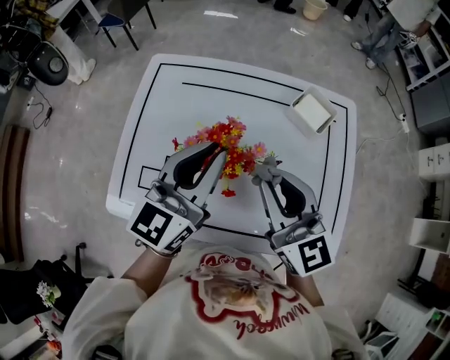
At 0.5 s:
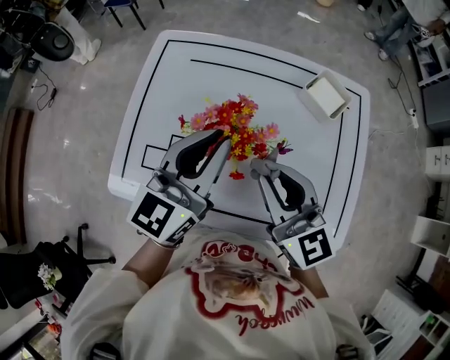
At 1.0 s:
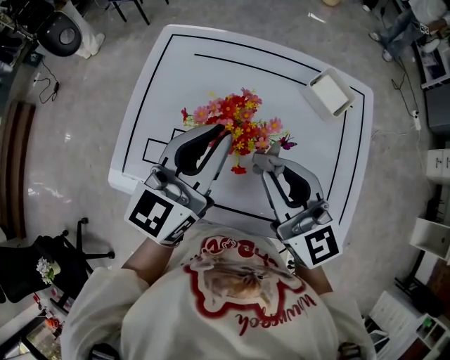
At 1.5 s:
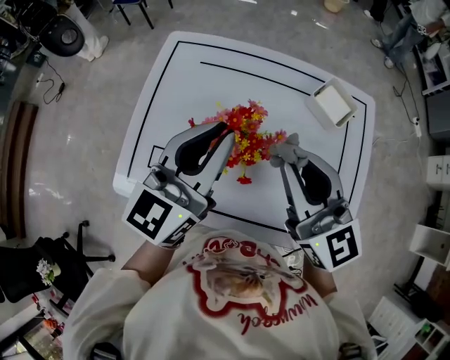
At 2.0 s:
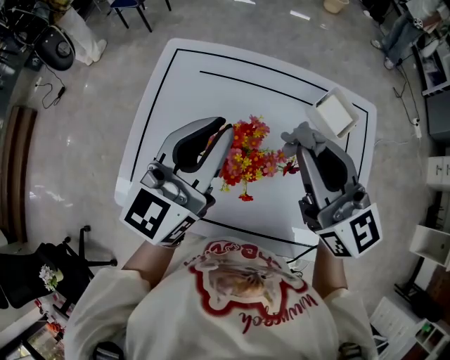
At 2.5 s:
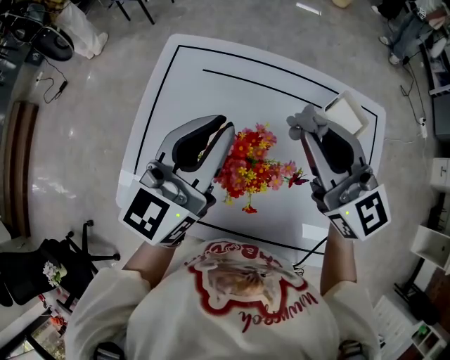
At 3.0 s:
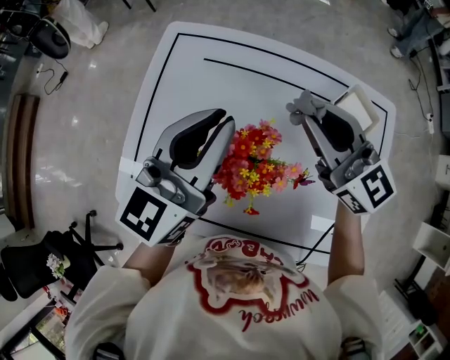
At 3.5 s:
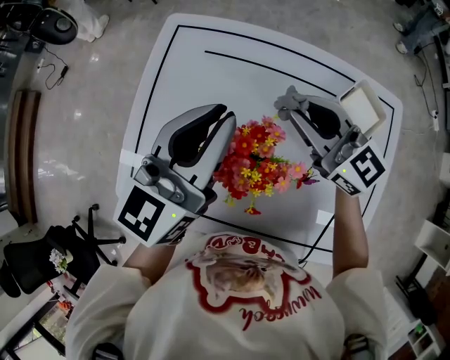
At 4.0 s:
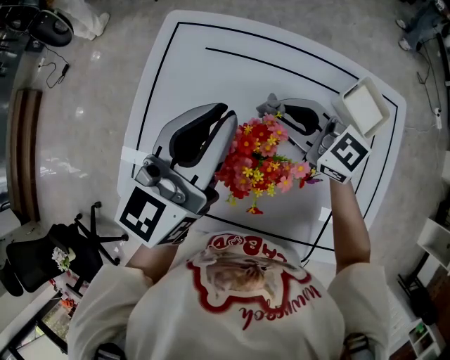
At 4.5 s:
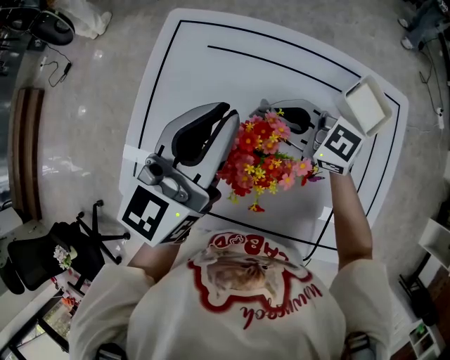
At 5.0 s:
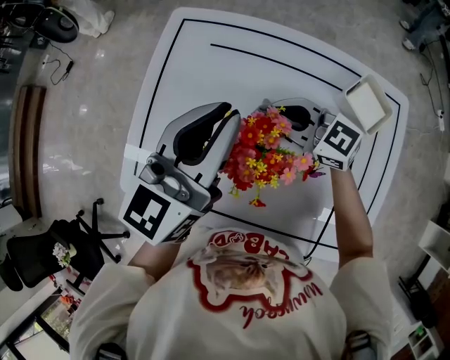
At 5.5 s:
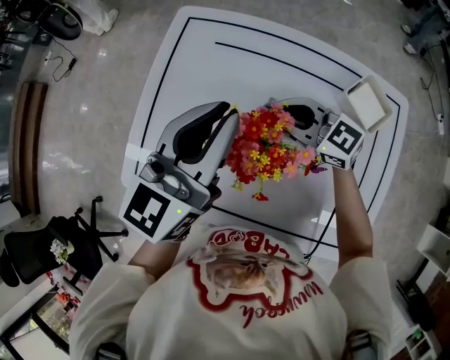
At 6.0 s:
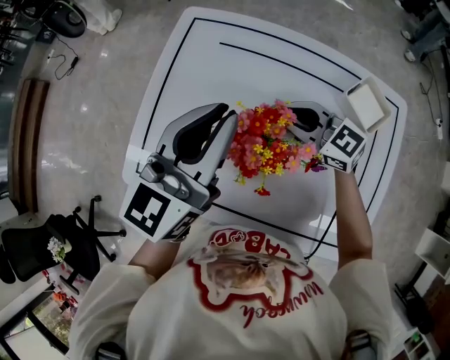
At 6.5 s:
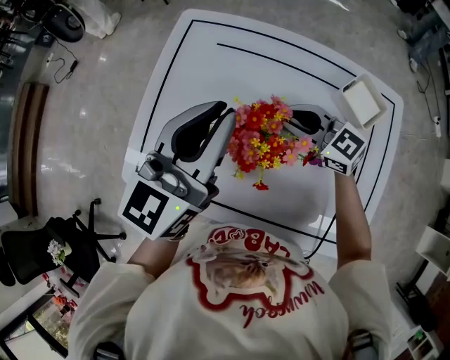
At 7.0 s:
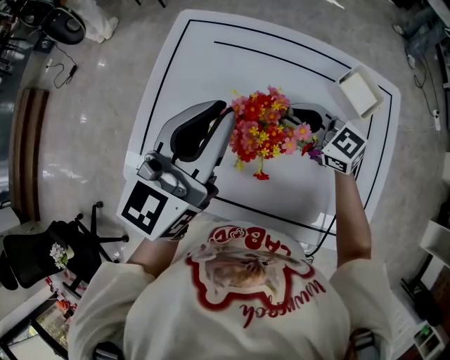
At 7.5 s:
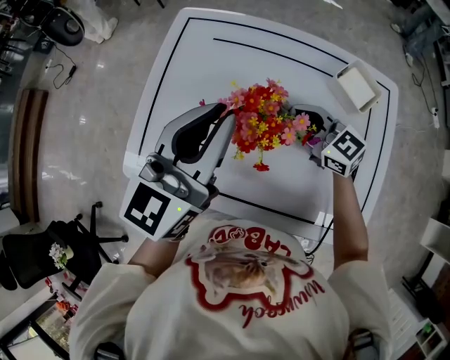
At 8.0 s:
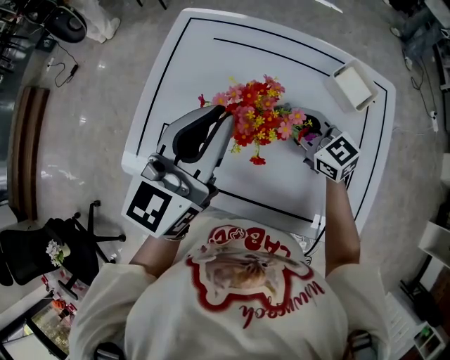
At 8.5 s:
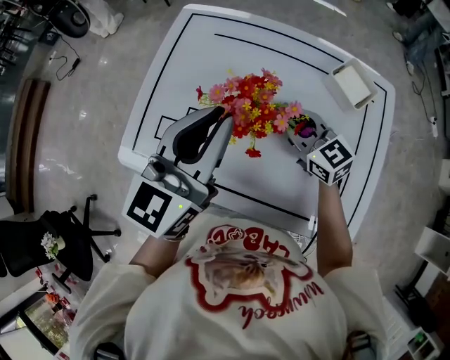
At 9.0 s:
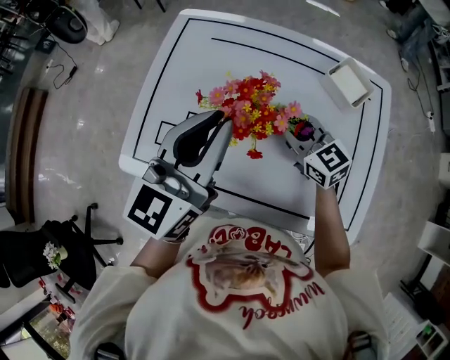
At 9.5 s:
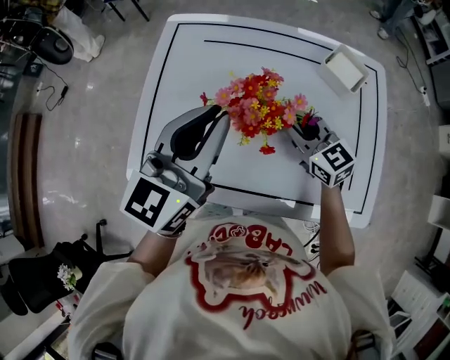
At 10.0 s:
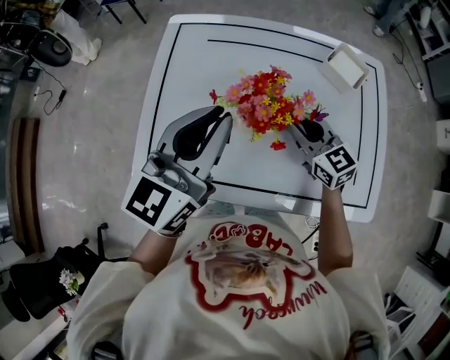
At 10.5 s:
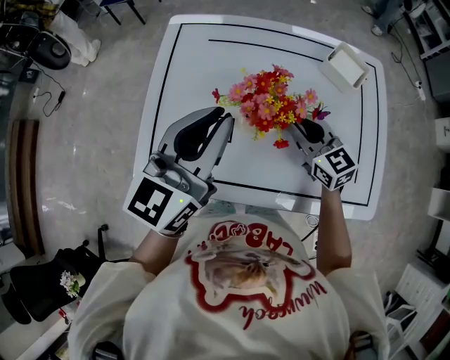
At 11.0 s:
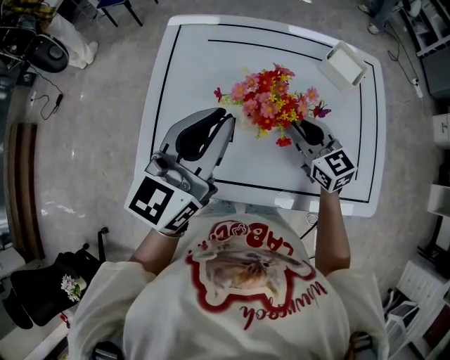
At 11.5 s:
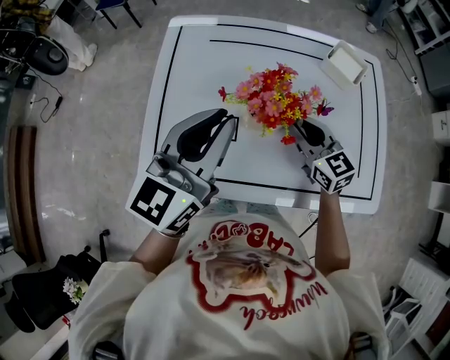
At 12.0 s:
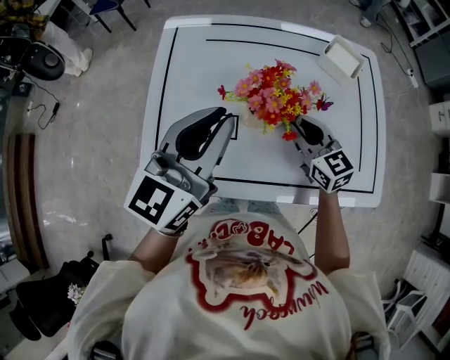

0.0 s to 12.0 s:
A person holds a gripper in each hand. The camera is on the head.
0.0 to 2.0 s: The left gripper shifts by approximately 5 cm; the right gripper goes some 5 cm forward.
2.0 to 4.0 s: The right gripper is displaced downward and forward by some 20 cm, and changes its angle by roughly 30 degrees, while the left gripper changes place by about 5 cm.
4.0 to 6.0 s: The grippers make only small movements.
6.0 to 8.0 s: The two grippers go about 5 cm backward.
8.0 to 10.0 s: The grippers stay close to where they were, moving slightly.
10.0 to 12.0 s: The grippers stay close to where they were, moving slightly.

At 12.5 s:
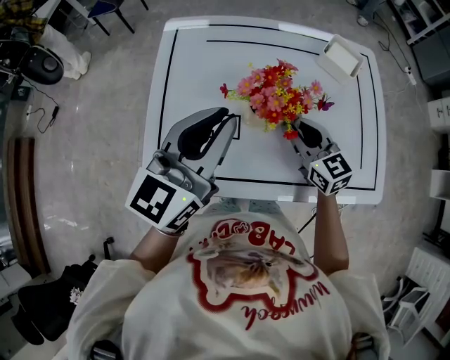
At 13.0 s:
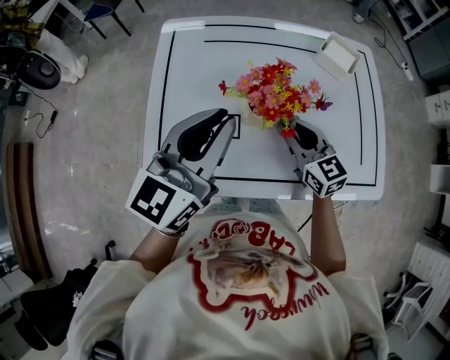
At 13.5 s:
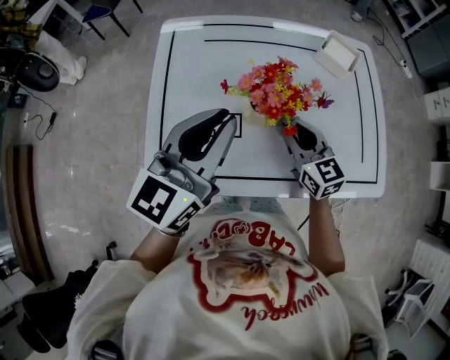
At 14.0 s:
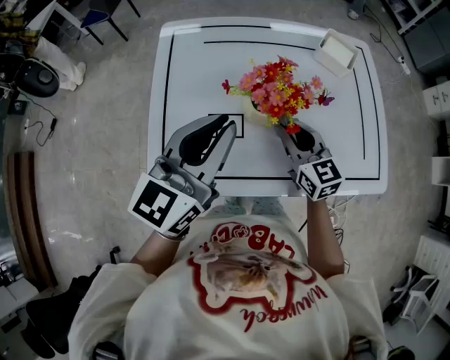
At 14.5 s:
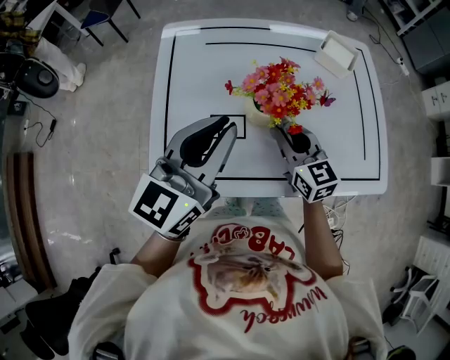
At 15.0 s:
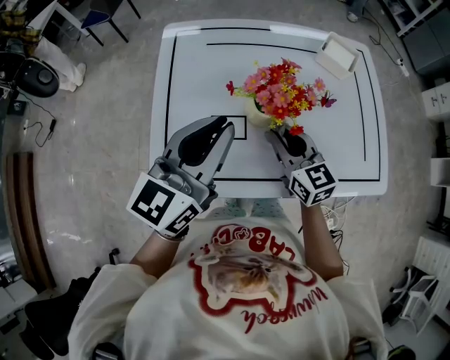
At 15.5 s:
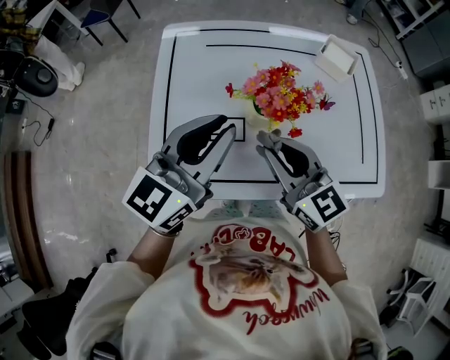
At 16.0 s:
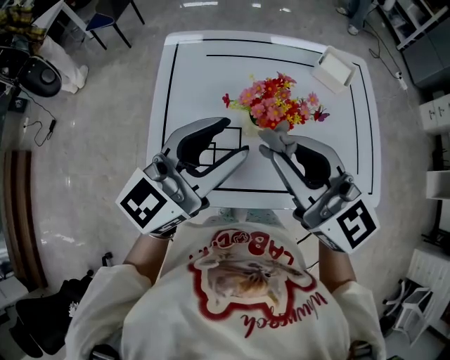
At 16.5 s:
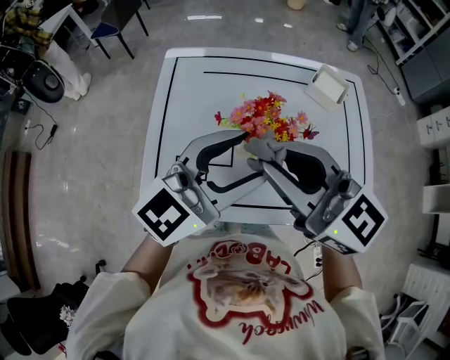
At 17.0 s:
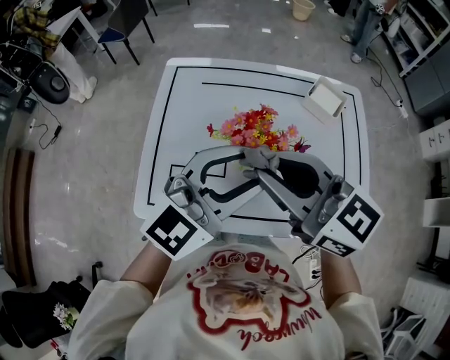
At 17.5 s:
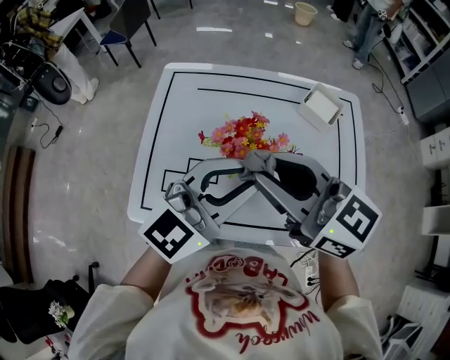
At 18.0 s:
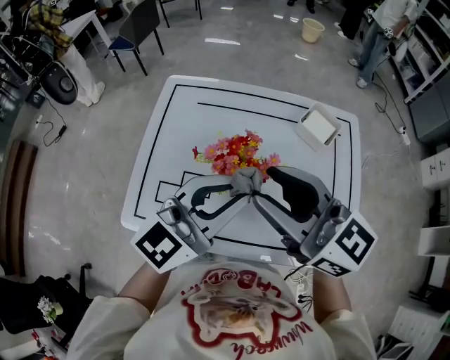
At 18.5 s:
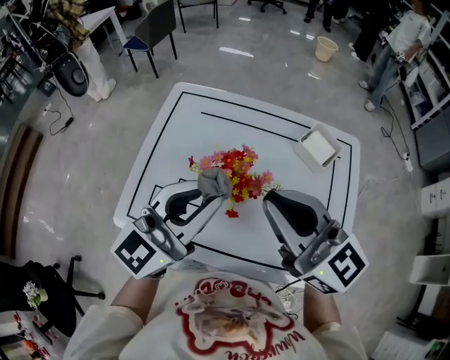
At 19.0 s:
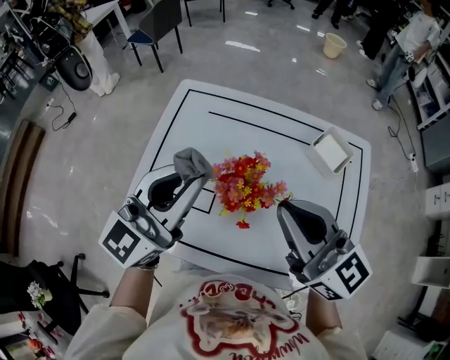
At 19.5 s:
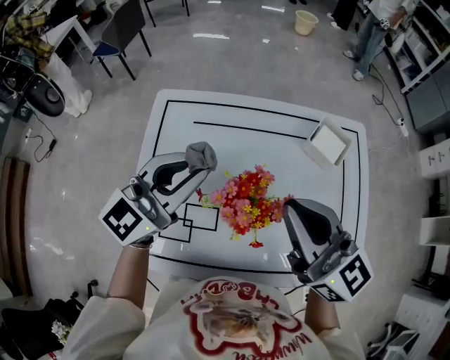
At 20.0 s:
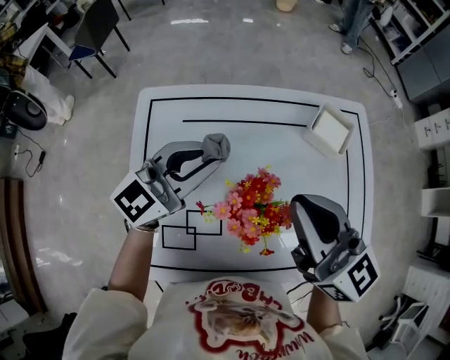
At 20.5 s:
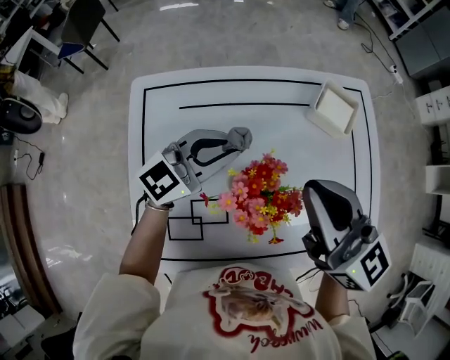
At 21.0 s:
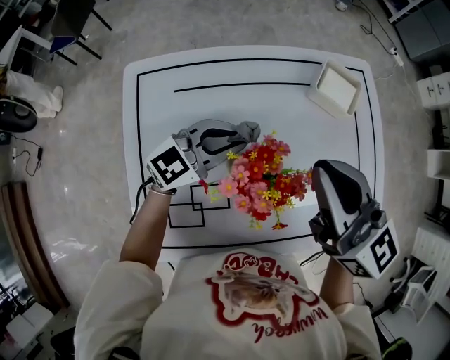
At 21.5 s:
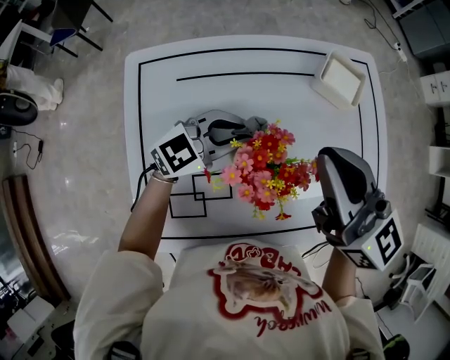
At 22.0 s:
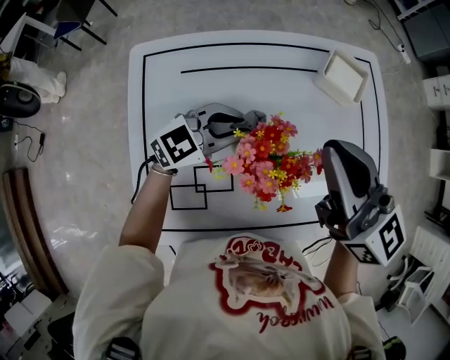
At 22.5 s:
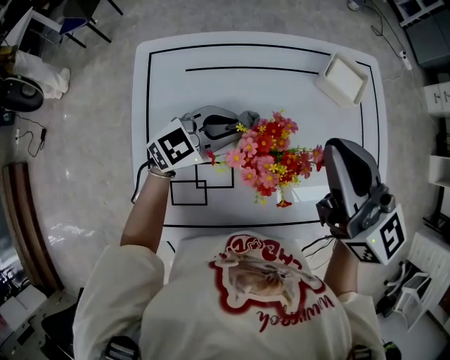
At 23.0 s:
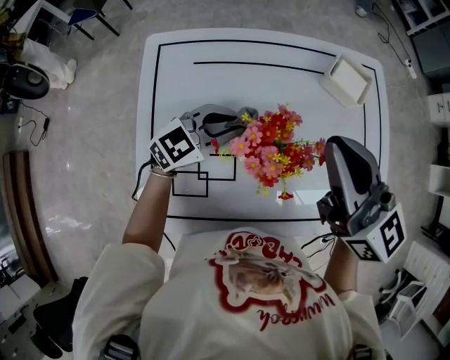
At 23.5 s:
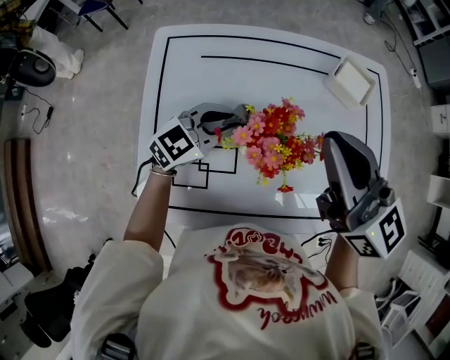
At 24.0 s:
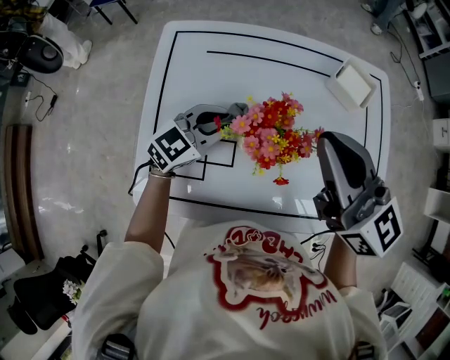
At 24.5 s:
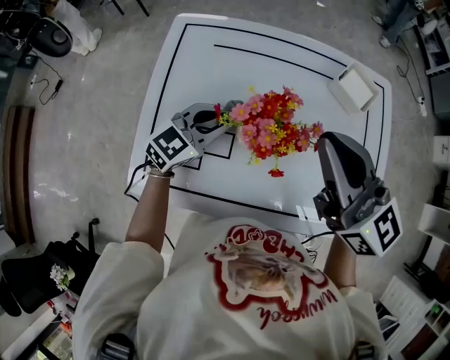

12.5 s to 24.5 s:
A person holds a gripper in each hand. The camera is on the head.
12.5 to 14.5 s: The grippers stay close to where they were, moving slightly.
14.5 to 16.5 s: The right gripper goes about 25 cm upward, and changes its angle by about 30 degrees, while the left gripper goes some 10 cm to the right, turns by roughly 20 degrees, and opens up.
16.5 to 18.5 s: The right gripper is displaced to the right by approximately 10 cm, and opens, then closes once more. The left gripper rotates about 20 degrees, and closes.
18.5 to 20.5 s: The right gripper ends up about 10 cm from where it was, and changes its angle by about 30 degrees. The left gripper moves some 25 cm, and rotates some 40 degrees.
20.5 to 22.5 s: The left gripper travels downward by roughly 5 cm.
22.5 to 24.5 s: The left gripper travels backward by approximately 5 cm, and rotates approximately 30 degrees.

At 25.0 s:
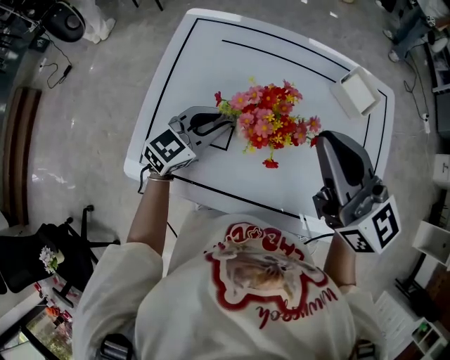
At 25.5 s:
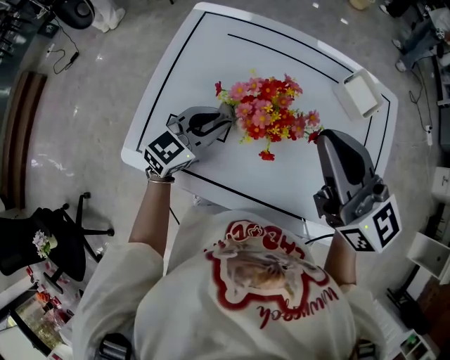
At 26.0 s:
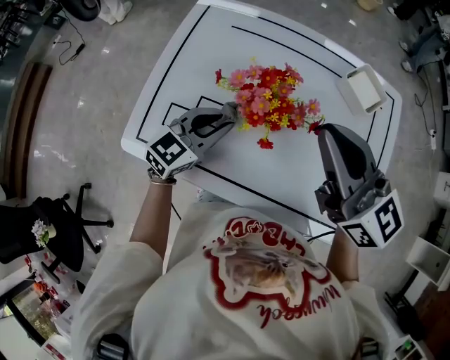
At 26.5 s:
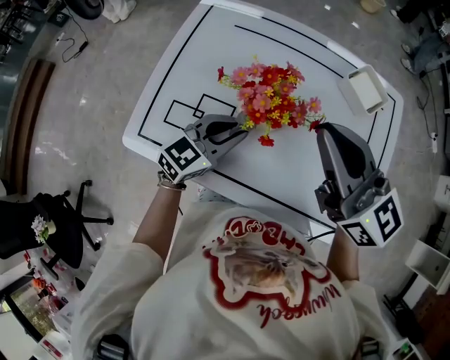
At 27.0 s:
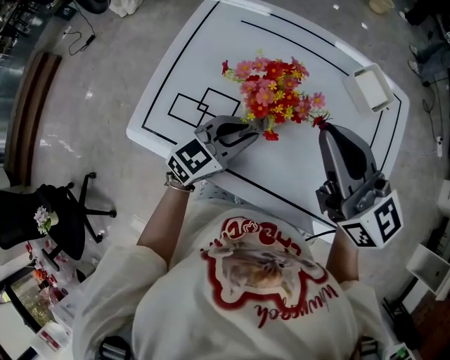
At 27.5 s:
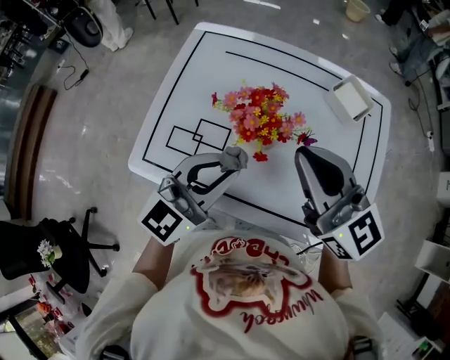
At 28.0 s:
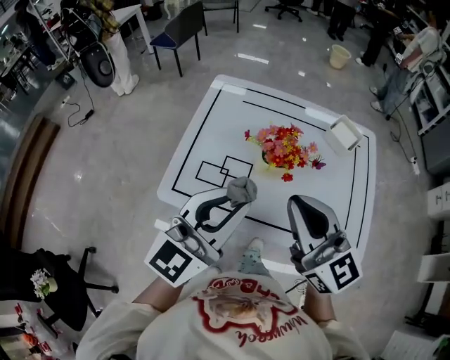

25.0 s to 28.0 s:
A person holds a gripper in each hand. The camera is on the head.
25.0 to 26.5 s: The left gripper moves backward, some 5 cm.
26.5 to 28.0 s: The left gripper moves upward and backward, about 25 cm, and rotates roughly 30 degrees. Meanwhile the right gripper heads backward and to the left, covering approximately 15 cm.
